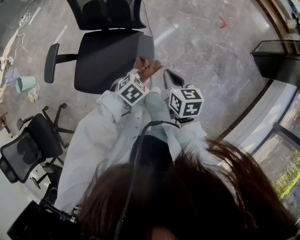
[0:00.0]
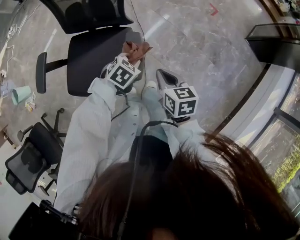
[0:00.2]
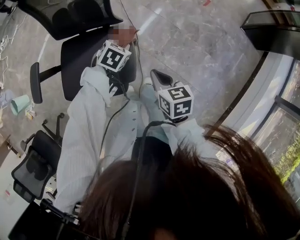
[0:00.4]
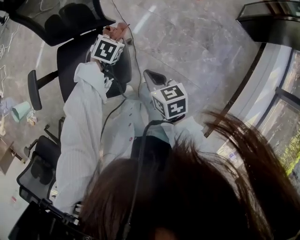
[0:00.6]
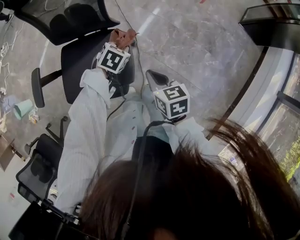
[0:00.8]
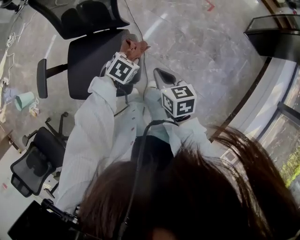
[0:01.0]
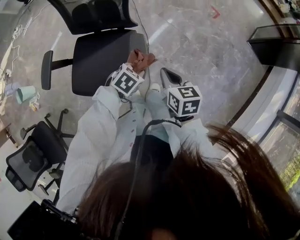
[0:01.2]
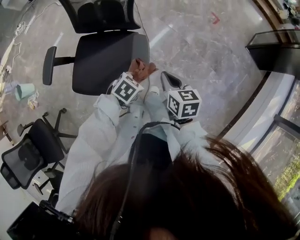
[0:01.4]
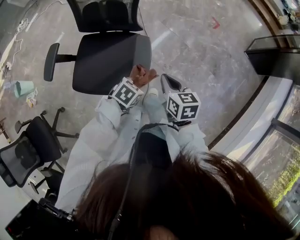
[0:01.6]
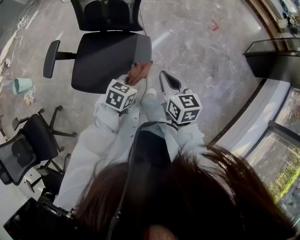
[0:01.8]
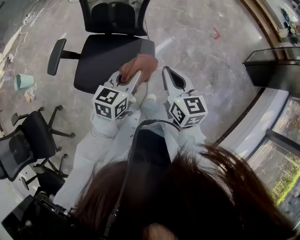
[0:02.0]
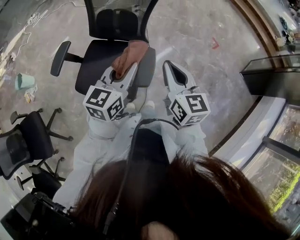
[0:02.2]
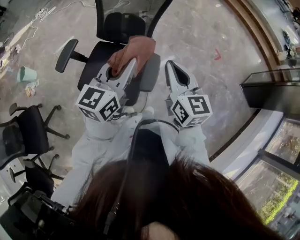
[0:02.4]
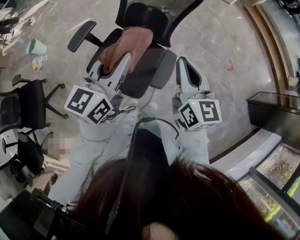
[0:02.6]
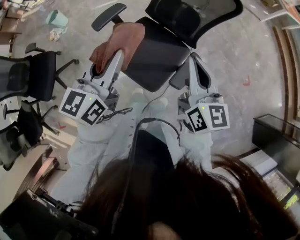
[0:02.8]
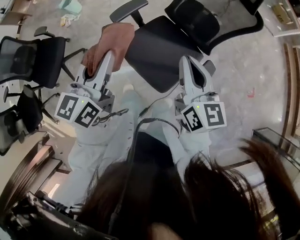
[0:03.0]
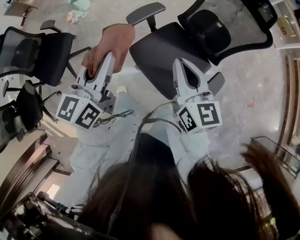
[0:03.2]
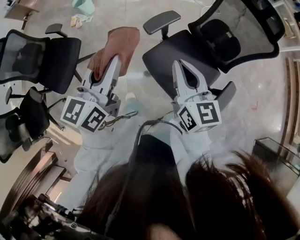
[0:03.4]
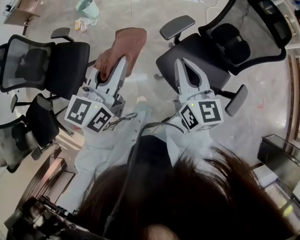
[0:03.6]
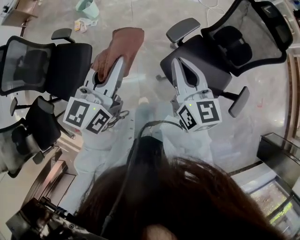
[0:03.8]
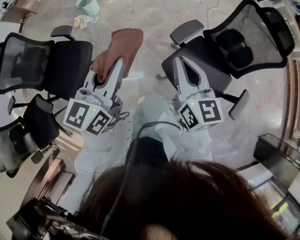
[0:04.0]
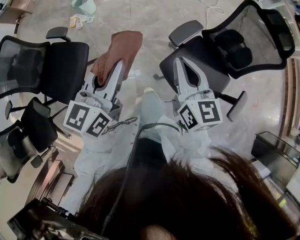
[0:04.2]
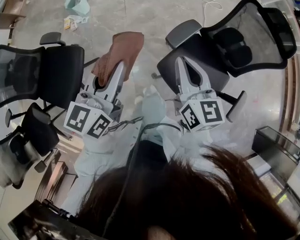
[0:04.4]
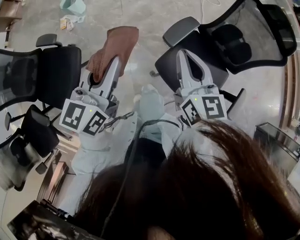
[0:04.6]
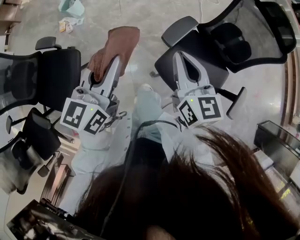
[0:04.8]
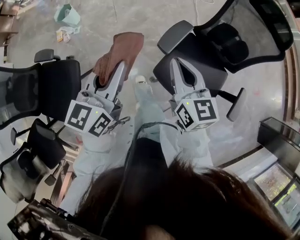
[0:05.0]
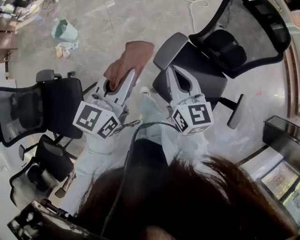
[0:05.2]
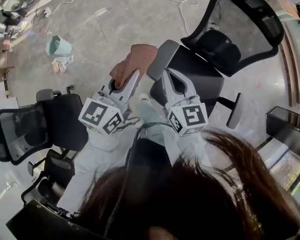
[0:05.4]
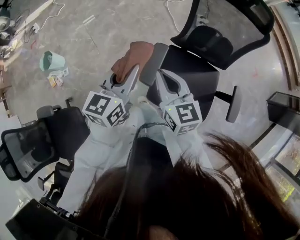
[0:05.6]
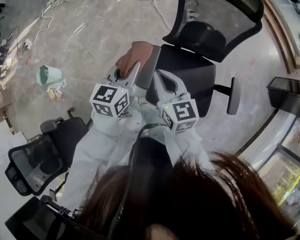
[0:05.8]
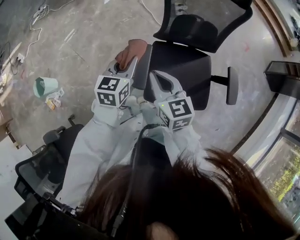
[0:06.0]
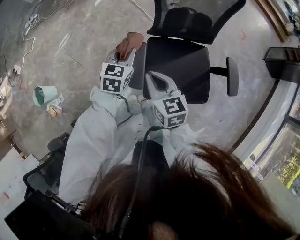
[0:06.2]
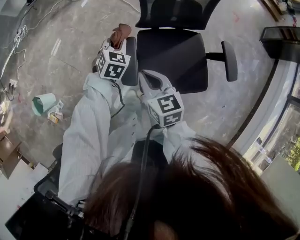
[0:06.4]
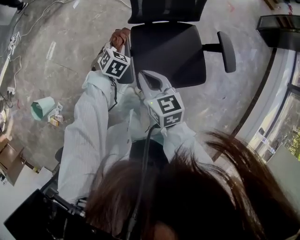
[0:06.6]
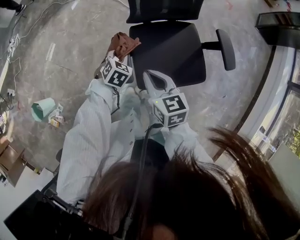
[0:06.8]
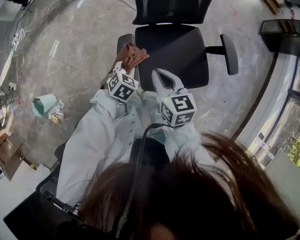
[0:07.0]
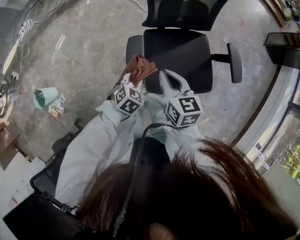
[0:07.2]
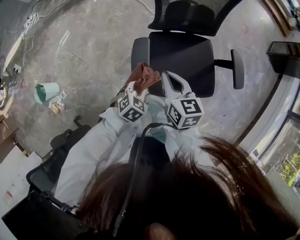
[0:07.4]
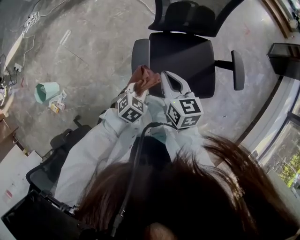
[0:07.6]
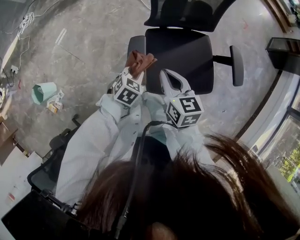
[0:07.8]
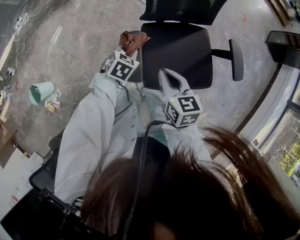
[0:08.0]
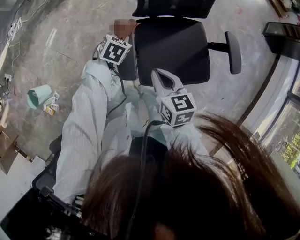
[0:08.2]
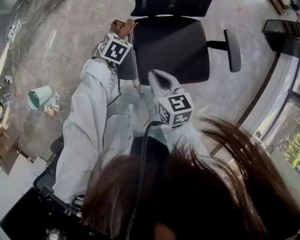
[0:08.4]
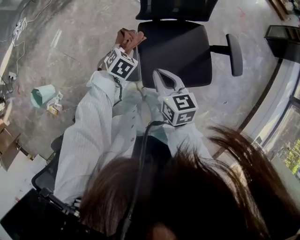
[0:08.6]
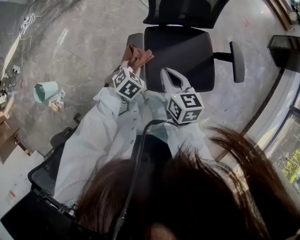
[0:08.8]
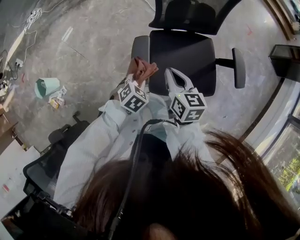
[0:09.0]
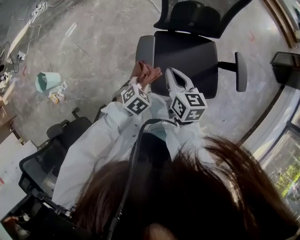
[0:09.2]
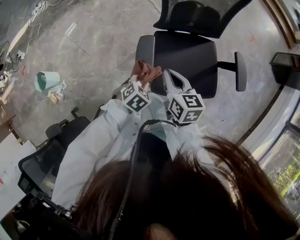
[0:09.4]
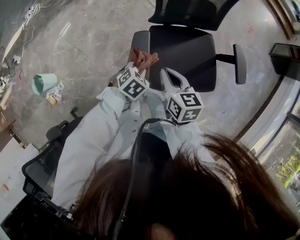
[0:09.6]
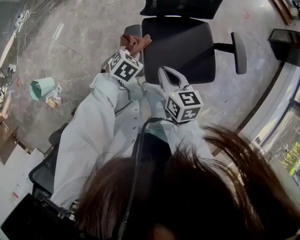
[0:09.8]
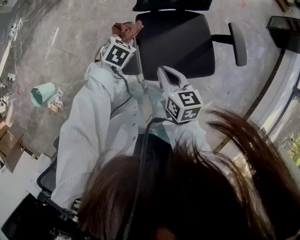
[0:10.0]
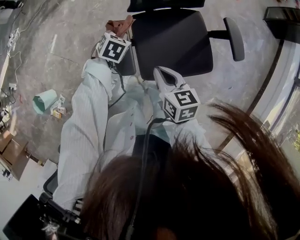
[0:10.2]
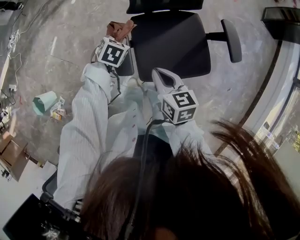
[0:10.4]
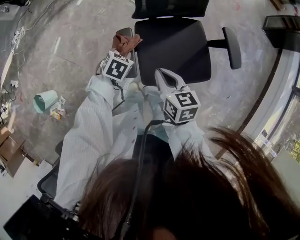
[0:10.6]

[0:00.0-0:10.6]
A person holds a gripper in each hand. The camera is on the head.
0:00.0 to 0:01.6: The right gripper moves some 5 cm, while the left gripper reaches about 15 cm forward, then returns.
0:01.6 to 0:03.0: The left gripper shifts by approximately 50 cm, and tips its fingers upward by roughly 50 degrees, while the right gripper changes place by some 35 cm, and points its fingers roughly 30 degrees further upward.
0:03.0 to 0:04.6: The two grippers travel together, to the left and forward, approximately 40 cm.
0:04.6 to 0:06.0: The right gripper changes place by roughly 20 cm, and turns by approximately 30 degrees, while the left gripper moves some 40 cm, and rotates some 40 degrees.
0:06.0 to 0:07.6: The left gripper moves downward, backward and to the right, about 20 cm, and tips its fingers downward by roughly 30 degrees. Meanwhile the right gripper is displaced to the right and downward by roughly 5 cm.
0:07.6 to 0:09.0: The left gripper goes forward and returns, about 20 cm each way.
0:09.0 to 0:10.6: The left gripper moves forward, approximately 10 cm.

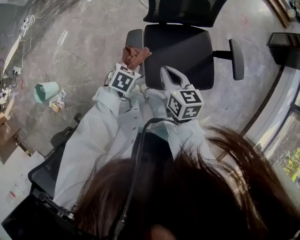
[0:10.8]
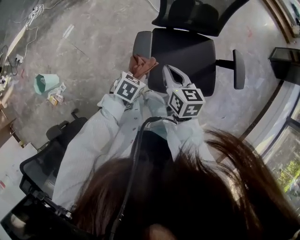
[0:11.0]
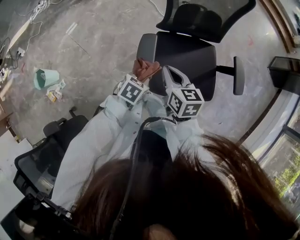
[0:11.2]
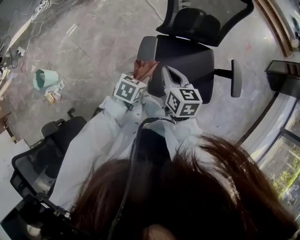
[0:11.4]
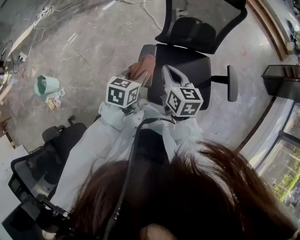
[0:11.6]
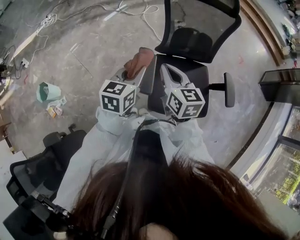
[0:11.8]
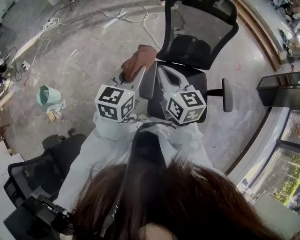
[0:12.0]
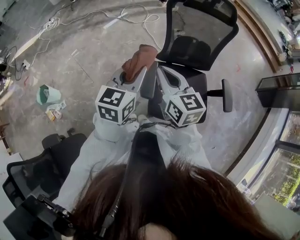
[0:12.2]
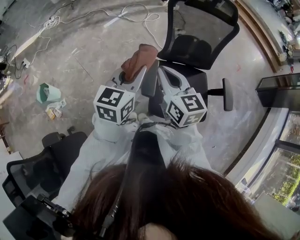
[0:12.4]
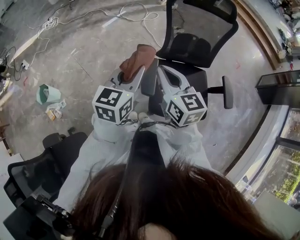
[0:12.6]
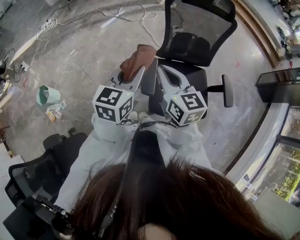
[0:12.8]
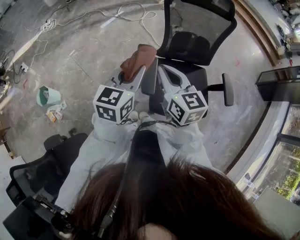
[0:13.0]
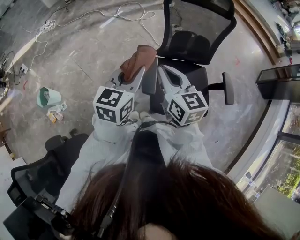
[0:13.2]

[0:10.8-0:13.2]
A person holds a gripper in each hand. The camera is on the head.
0:10.8 to 0:12.0: The left gripper travels upward by roughly 30 cm, and tips its fingers upward by roughly 50 degrees, while the right gripper shifts roughly 20 cm upward and to the left, and changes its angle by about 30 degrees.
0:12.0 to 0:13.2: The grippers make only small movements.

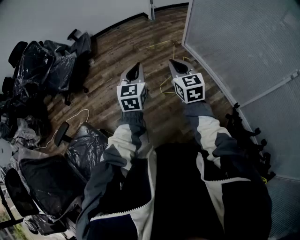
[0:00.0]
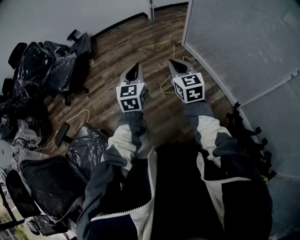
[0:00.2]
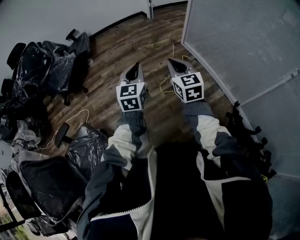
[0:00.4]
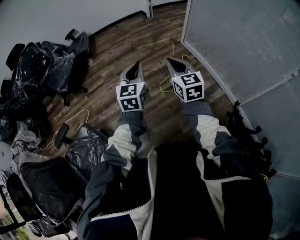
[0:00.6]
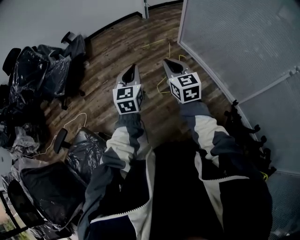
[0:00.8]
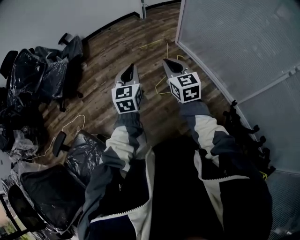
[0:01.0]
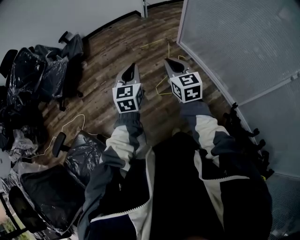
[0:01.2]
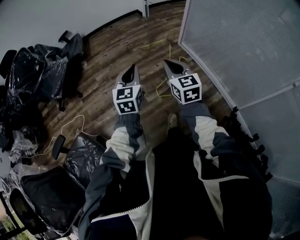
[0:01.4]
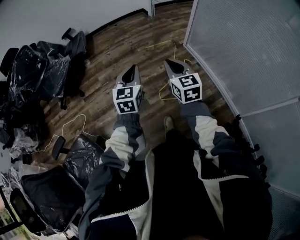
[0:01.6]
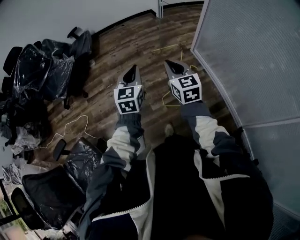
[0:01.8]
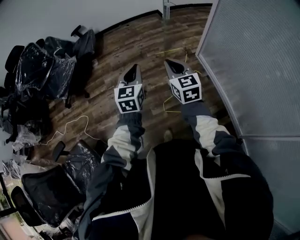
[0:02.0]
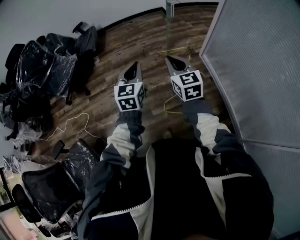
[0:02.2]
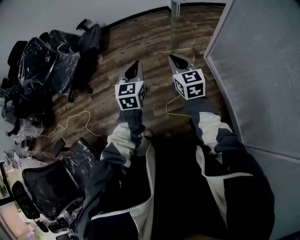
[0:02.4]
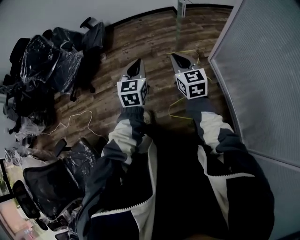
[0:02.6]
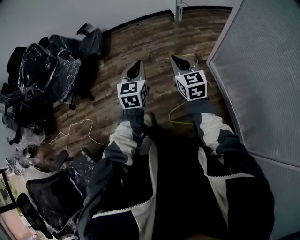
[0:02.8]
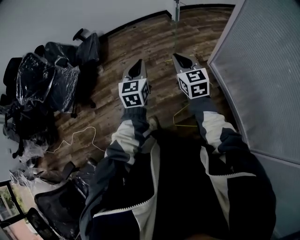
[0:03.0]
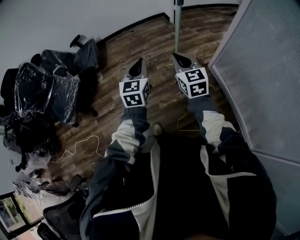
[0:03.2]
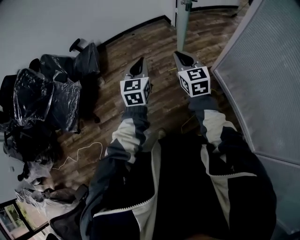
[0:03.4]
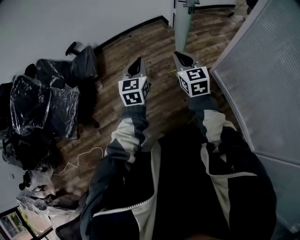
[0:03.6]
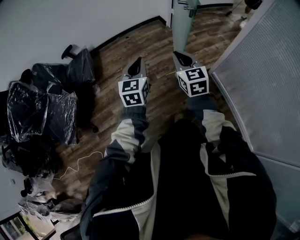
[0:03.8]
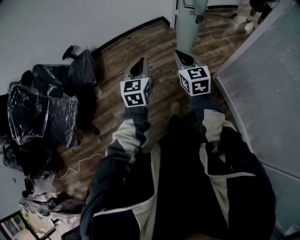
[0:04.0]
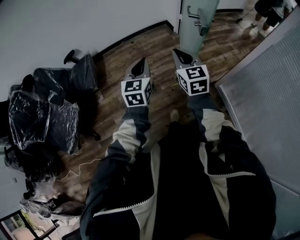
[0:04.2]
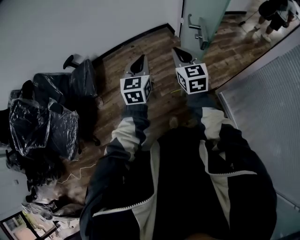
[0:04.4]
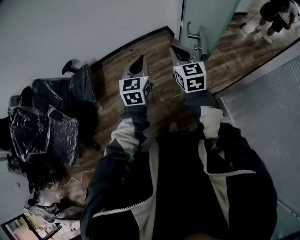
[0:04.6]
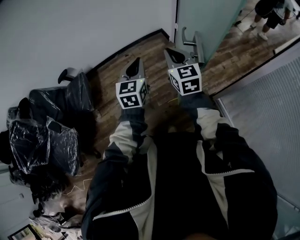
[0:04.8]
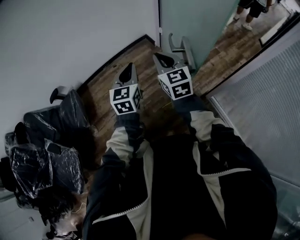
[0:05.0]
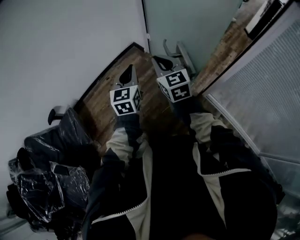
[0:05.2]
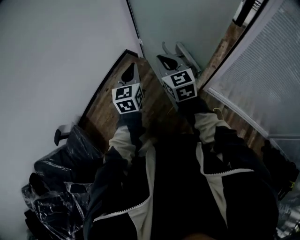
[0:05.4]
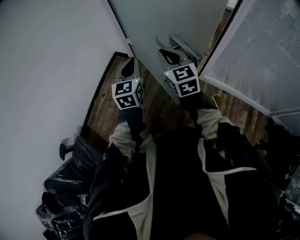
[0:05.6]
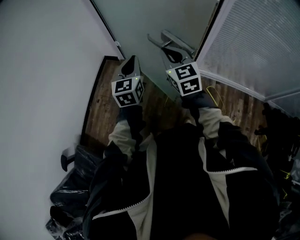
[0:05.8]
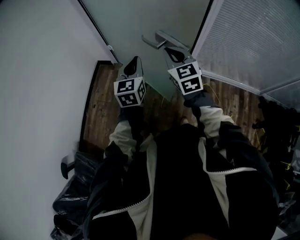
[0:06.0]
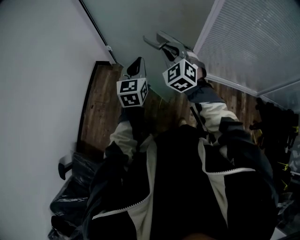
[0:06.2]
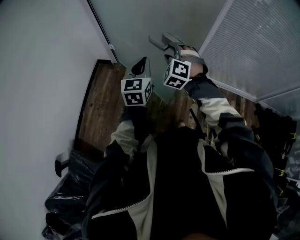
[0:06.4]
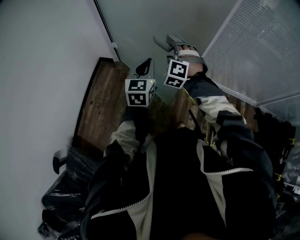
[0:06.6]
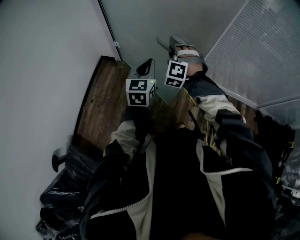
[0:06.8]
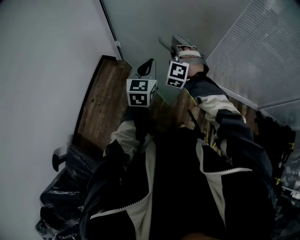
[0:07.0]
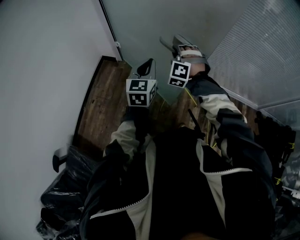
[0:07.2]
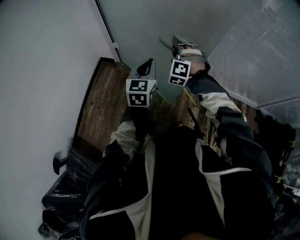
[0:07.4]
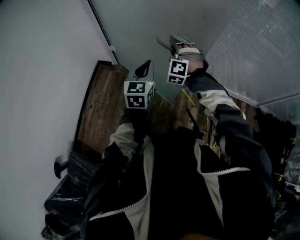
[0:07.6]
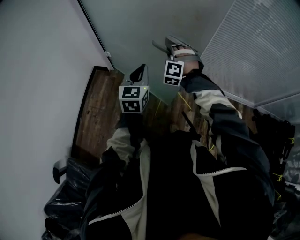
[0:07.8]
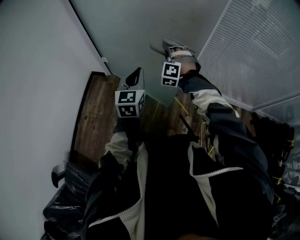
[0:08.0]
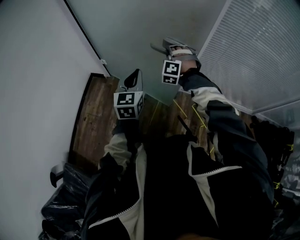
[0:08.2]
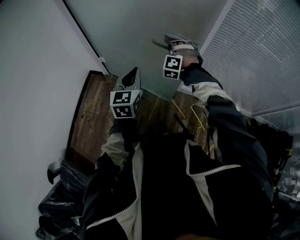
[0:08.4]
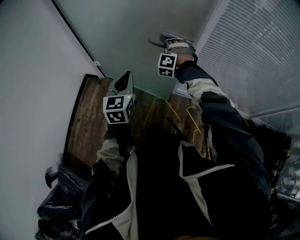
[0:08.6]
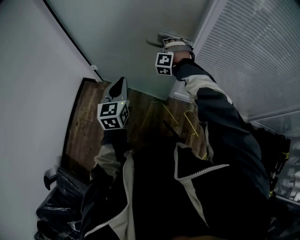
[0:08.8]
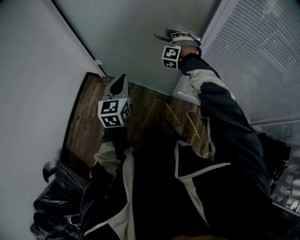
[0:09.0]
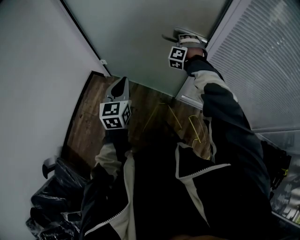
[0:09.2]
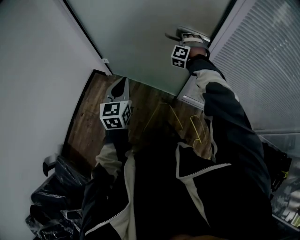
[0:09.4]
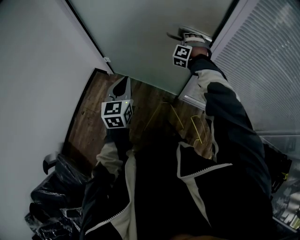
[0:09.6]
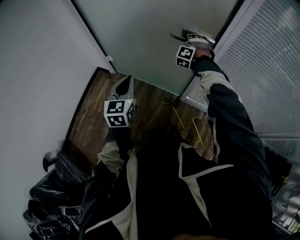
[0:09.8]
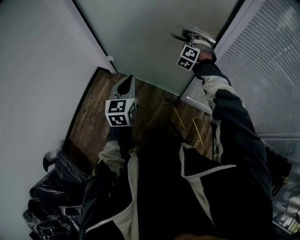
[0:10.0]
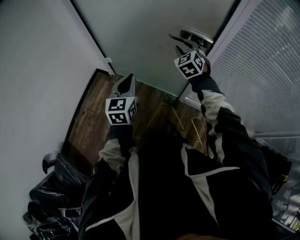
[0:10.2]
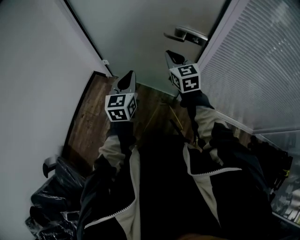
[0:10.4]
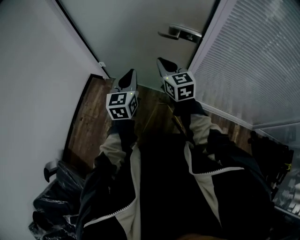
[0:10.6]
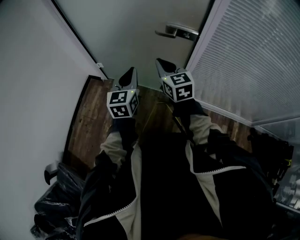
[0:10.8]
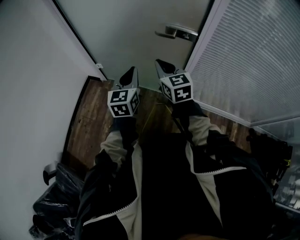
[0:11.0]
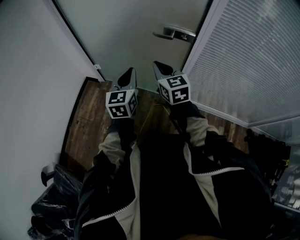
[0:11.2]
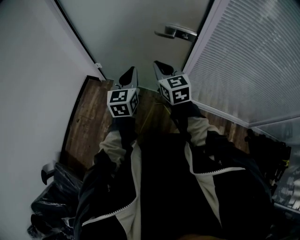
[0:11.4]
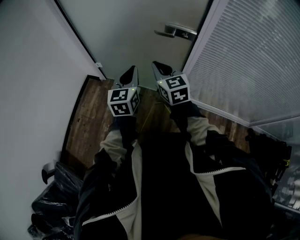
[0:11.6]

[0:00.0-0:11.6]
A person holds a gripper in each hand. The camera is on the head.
0:00.0 to 0:01.4: Both grippers travel together forward, about 10 cm.
0:01.4 to 0:02.8: Both grippers move forward, about 35 cm.
0:02.8 to 0:04.4: The pair of grippers is taken forward, about 50 cm.
0:04.4 to 0:05.8: The left gripper moves some 20 cm, and rotates some 40 degrees. The right gripper ends up roughly 15 cm from where it was, and changes its angle by about 40 degrees.
0:05.8 to 0:07.2: The right gripper goes roughly 10 cm downward and forward, rotates around the line of its fingers by about 70 degrees, counterclockwise from behind, and opens up.
0:07.2 to 0:08.8: The left gripper is displaced forward and to the right by some 15 cm. The right gripper heads forward and to the right, covering some 30 cm.
0:08.8 to 0:10.2: The right gripper moves upward, about 5 cm, goes forward and returns, approximately 10 cm each way, and rotates around the line of its fingers by roughly 50 degrees, clockwise from behind.
0:10.2 to 0:11.6: The left gripper heads to the right, covering some 5 cm. Meanwhile the right gripper moves backward and to the left, about 15 cm, changes its angle by about 40 degrees, and closes.
